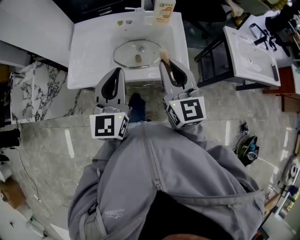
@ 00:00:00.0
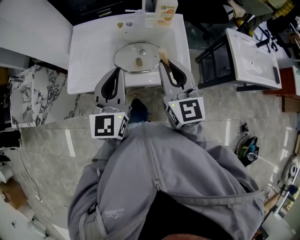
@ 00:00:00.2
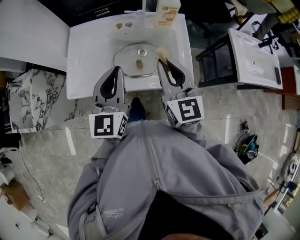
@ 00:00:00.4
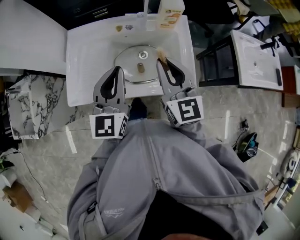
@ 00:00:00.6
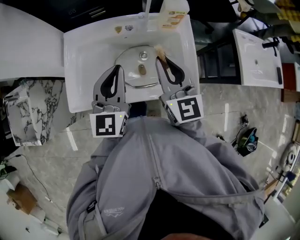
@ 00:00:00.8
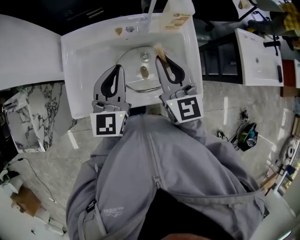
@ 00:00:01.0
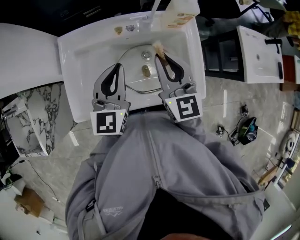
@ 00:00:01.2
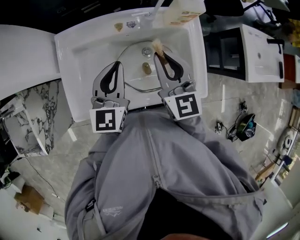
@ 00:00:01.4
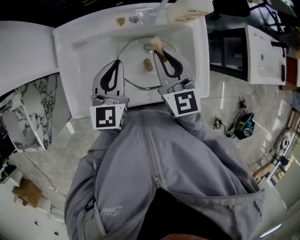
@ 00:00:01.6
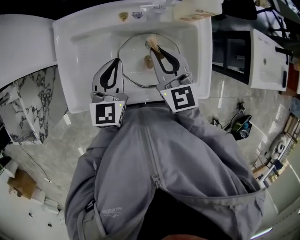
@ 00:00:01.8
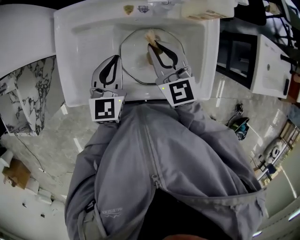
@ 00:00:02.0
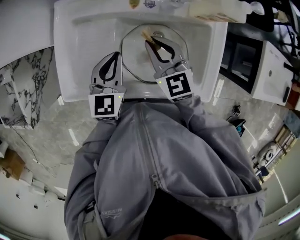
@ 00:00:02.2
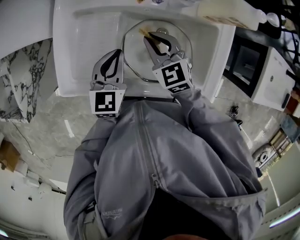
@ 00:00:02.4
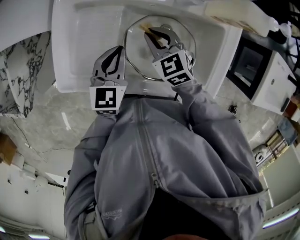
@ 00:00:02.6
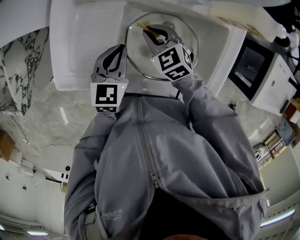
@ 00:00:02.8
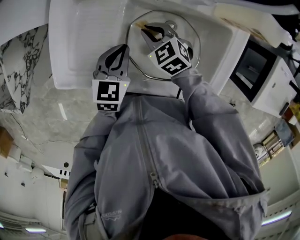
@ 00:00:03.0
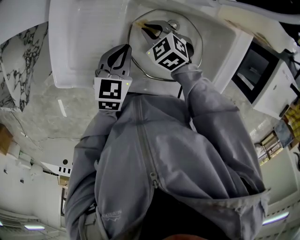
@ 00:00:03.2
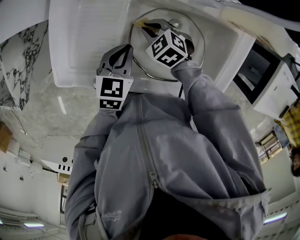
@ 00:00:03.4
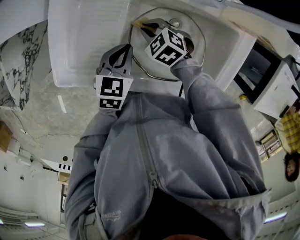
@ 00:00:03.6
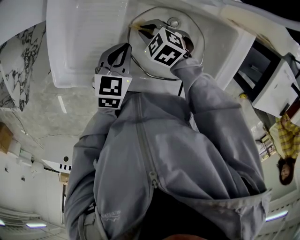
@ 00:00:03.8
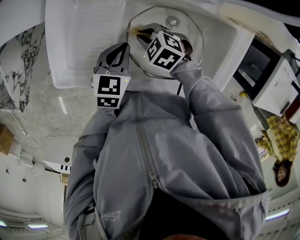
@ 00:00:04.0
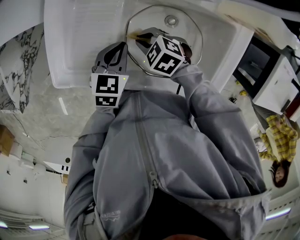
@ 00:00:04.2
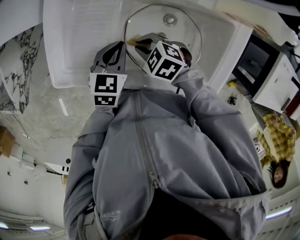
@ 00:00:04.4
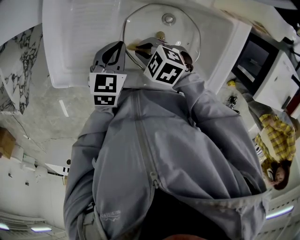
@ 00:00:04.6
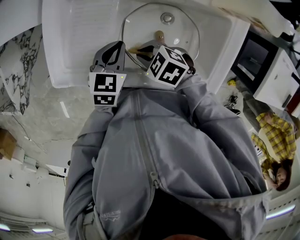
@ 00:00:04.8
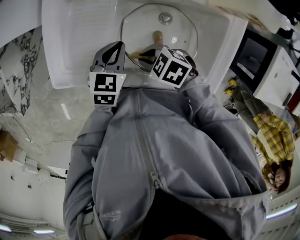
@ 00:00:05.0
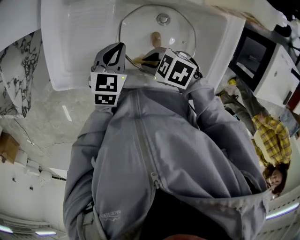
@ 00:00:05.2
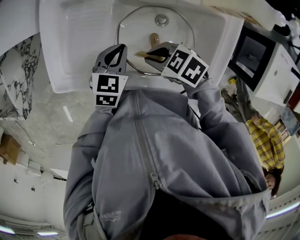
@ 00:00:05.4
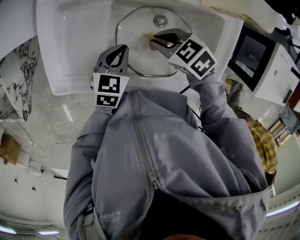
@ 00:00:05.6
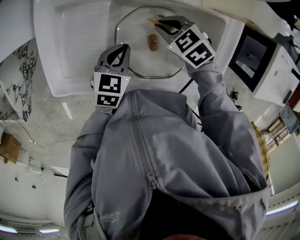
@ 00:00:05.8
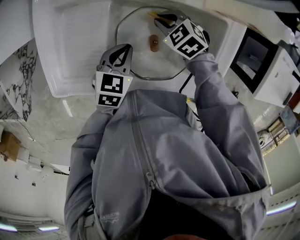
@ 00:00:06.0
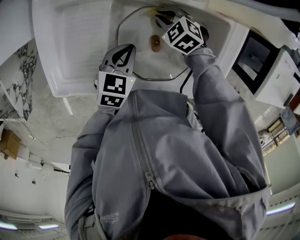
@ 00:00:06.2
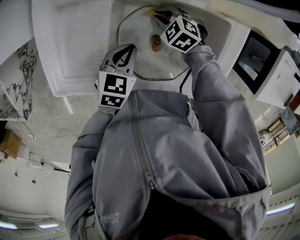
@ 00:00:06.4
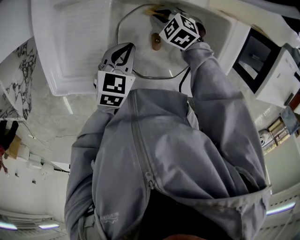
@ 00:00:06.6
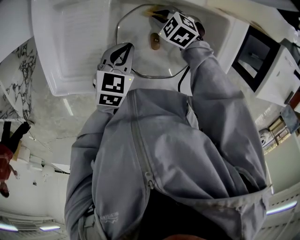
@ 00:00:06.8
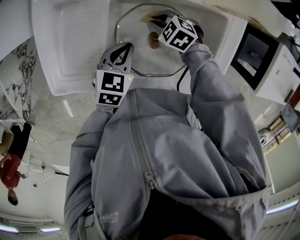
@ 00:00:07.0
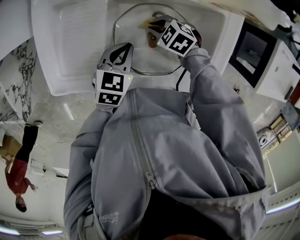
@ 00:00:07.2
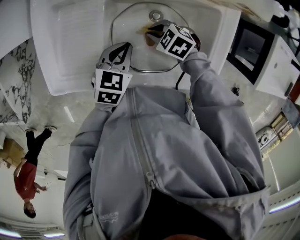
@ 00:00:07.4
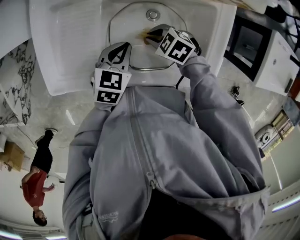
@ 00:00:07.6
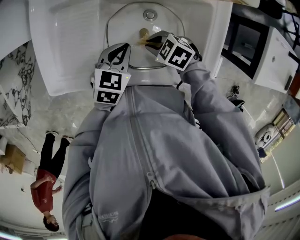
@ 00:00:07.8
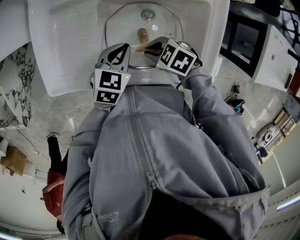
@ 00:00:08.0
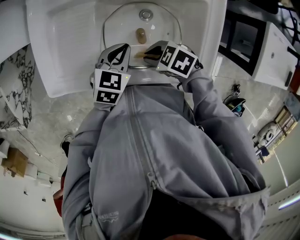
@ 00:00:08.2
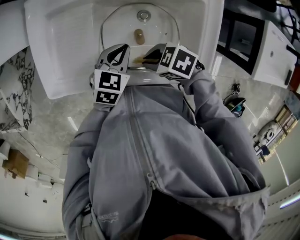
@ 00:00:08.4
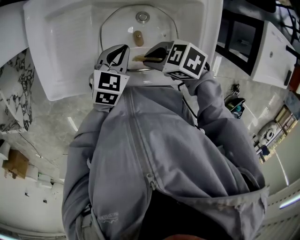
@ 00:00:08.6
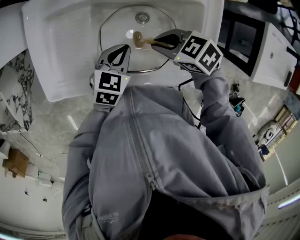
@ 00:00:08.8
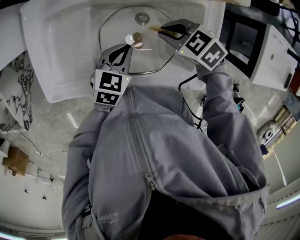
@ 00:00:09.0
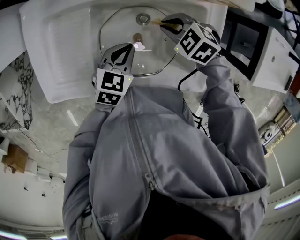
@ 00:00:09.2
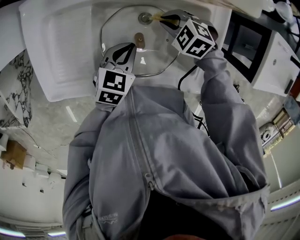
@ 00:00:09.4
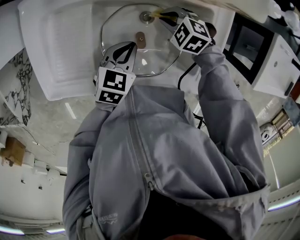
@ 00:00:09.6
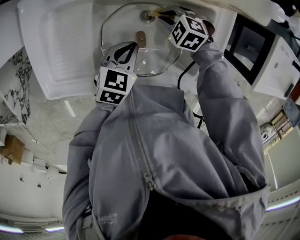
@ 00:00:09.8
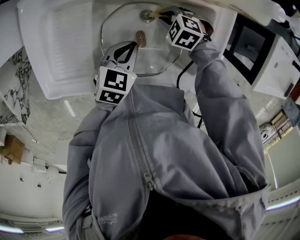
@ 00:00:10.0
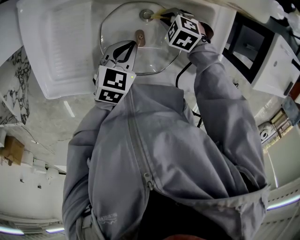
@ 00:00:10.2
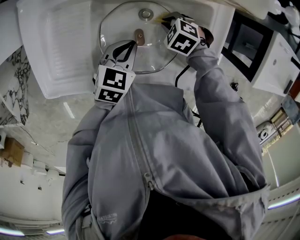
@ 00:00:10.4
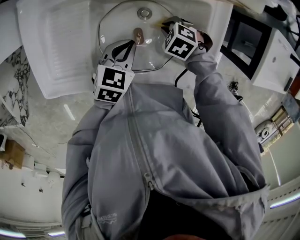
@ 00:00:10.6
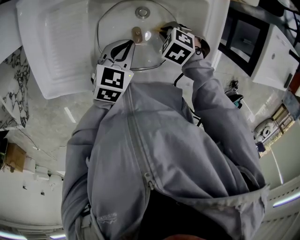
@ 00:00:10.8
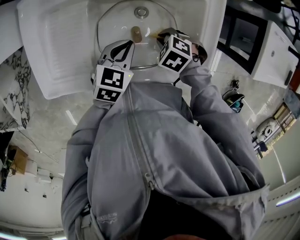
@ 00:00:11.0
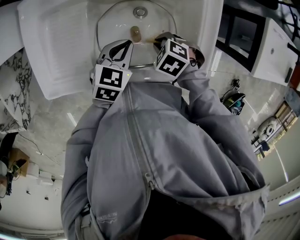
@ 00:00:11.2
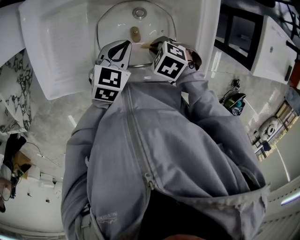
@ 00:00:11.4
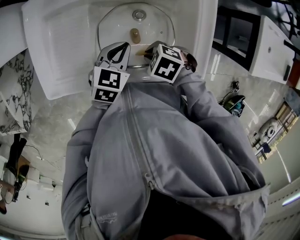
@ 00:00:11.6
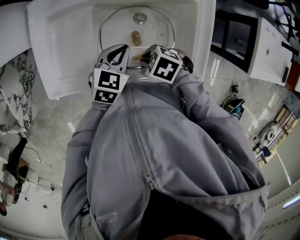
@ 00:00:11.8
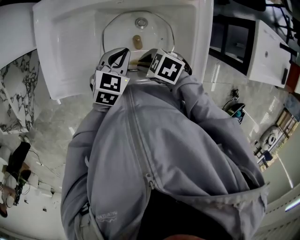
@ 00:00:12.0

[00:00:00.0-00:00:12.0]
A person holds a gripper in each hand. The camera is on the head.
00:00:00.0 to 00:00:01.6: Both grippers travel together forward and downward, some 25 cm.
00:00:01.6 to 00:00:03.0: The right gripper shifts about 25 cm downward and to the left, and tilts its fingers approximately 40 degrees downward. The left gripper heads downward, covering approximately 15 cm, and rotates about 30 degrees.
00:00:03.0 to 00:00:04.4: The right gripper travels backward and to the left by about 10 cm, and turns by roughly 20 degrees.
00:00:04.4 to 00:00:06.0: The right gripper travels upward and back again, approximately 5 cm each way. Meanwhile the left gripper ends up roughly 5 cm from where it was.
00:00:06.0 to 00:00:07.6: The right gripper changes place by roughly 10 cm.
00:00:07.6 to 00:00:09.0: The right gripper heads upward, covering roughly 10 cm.
00:00:09.0 to 00:00:10.4: The right gripper moves downward, roughly 15 cm, and changes its angle by about 30 degrees.
00:00:10.4 to 00:00:12.0: The right gripper changes place by approximately 20 cm, and turns by roughly 30 degrees; the left gripper ends up some 5 cm from where it was.

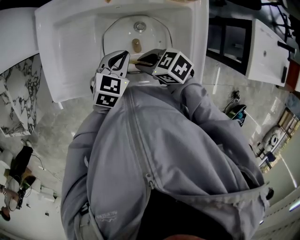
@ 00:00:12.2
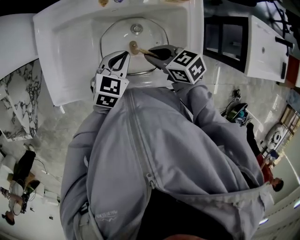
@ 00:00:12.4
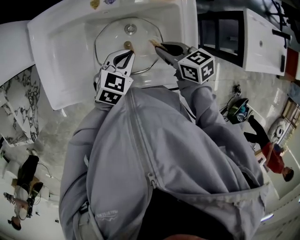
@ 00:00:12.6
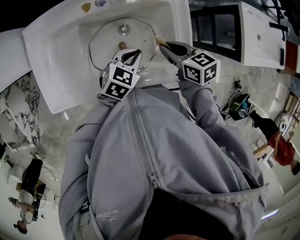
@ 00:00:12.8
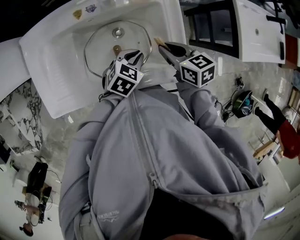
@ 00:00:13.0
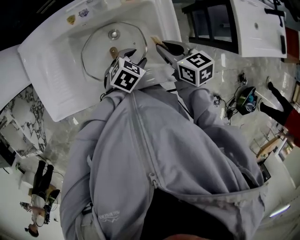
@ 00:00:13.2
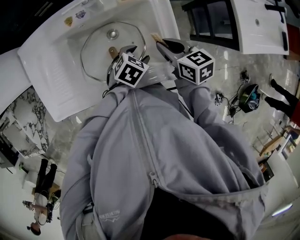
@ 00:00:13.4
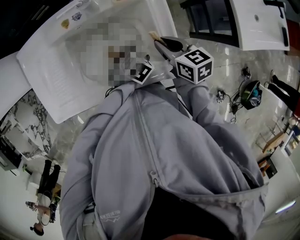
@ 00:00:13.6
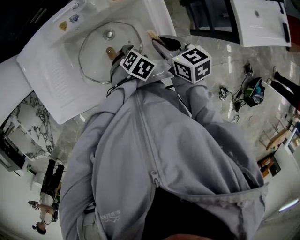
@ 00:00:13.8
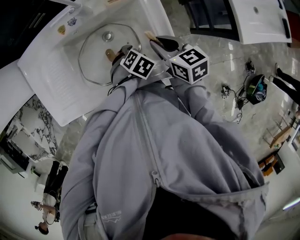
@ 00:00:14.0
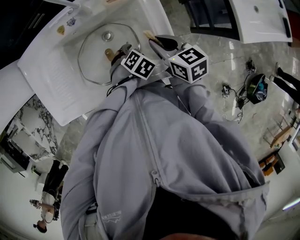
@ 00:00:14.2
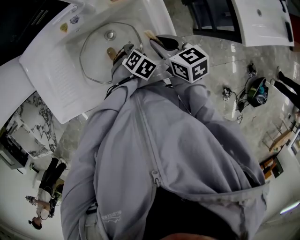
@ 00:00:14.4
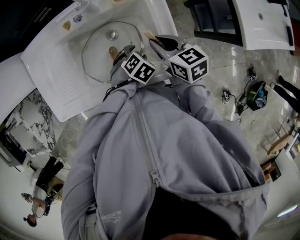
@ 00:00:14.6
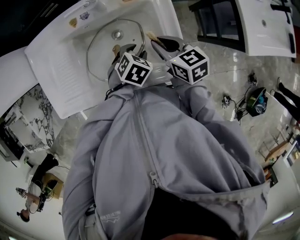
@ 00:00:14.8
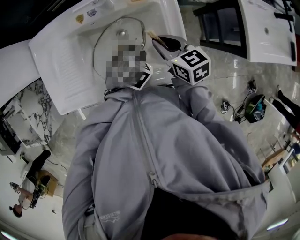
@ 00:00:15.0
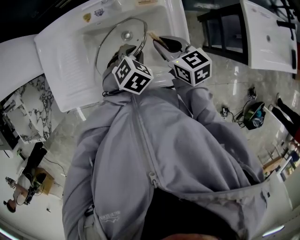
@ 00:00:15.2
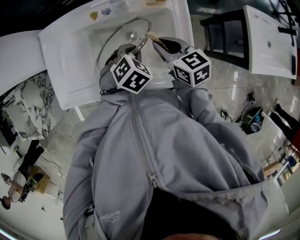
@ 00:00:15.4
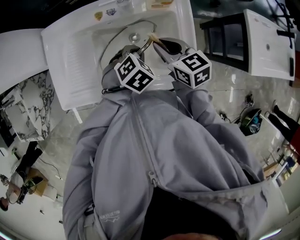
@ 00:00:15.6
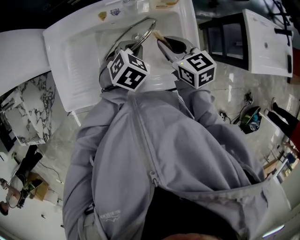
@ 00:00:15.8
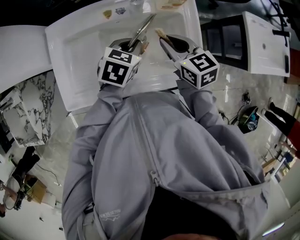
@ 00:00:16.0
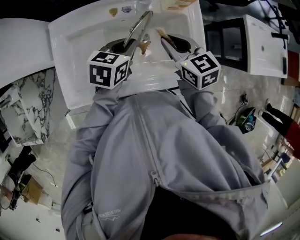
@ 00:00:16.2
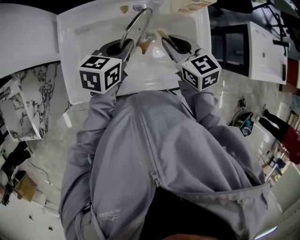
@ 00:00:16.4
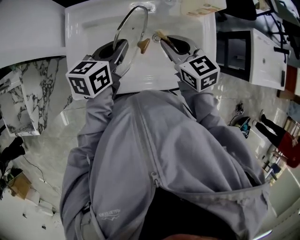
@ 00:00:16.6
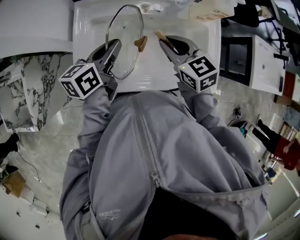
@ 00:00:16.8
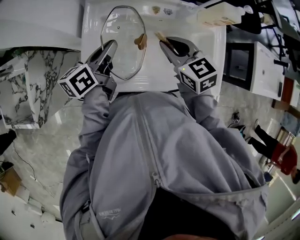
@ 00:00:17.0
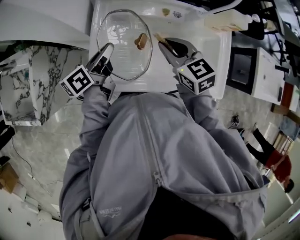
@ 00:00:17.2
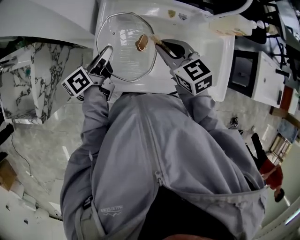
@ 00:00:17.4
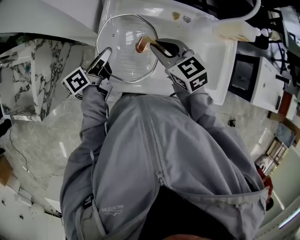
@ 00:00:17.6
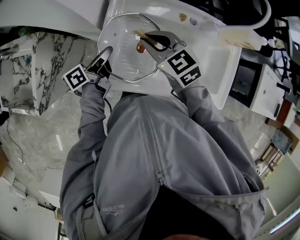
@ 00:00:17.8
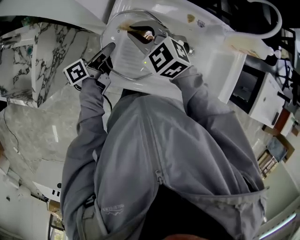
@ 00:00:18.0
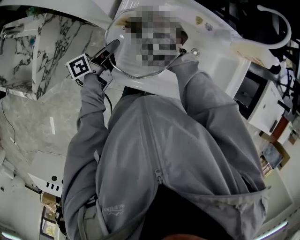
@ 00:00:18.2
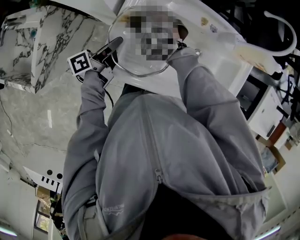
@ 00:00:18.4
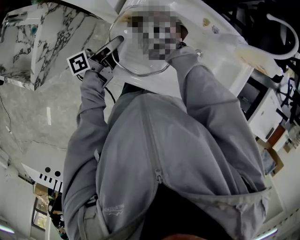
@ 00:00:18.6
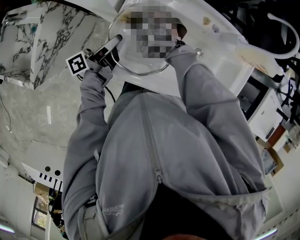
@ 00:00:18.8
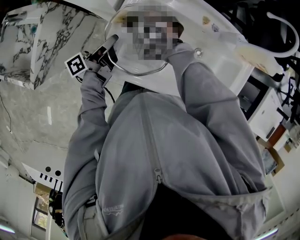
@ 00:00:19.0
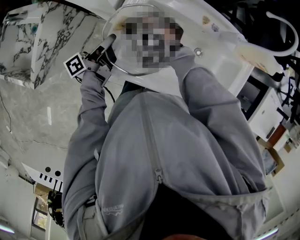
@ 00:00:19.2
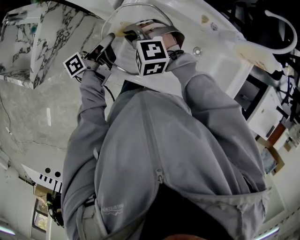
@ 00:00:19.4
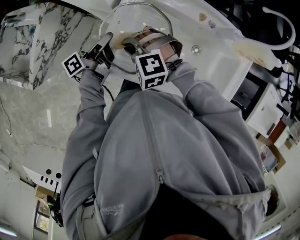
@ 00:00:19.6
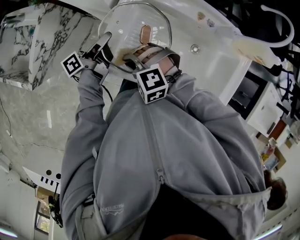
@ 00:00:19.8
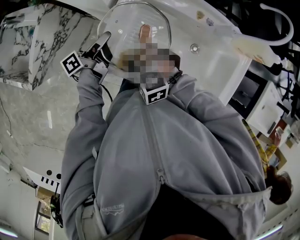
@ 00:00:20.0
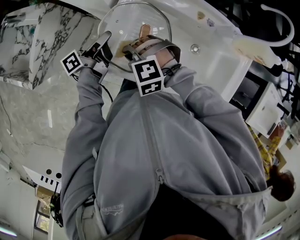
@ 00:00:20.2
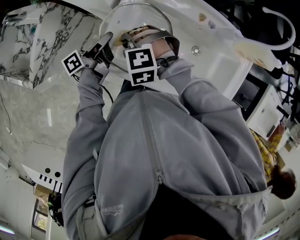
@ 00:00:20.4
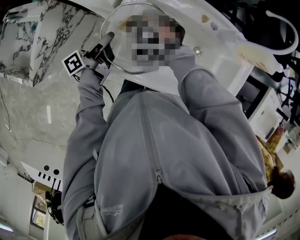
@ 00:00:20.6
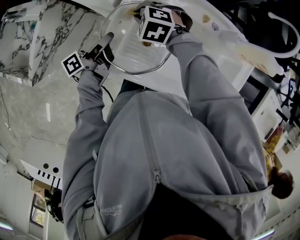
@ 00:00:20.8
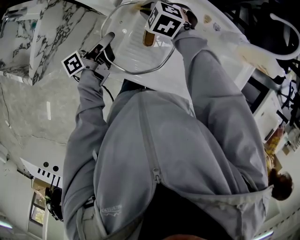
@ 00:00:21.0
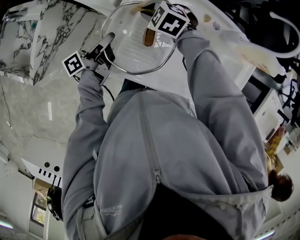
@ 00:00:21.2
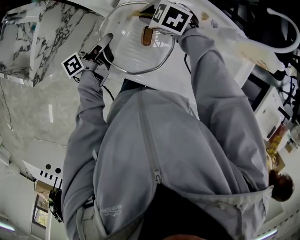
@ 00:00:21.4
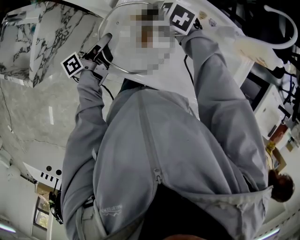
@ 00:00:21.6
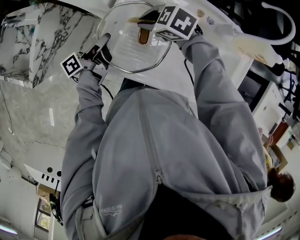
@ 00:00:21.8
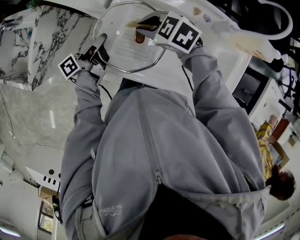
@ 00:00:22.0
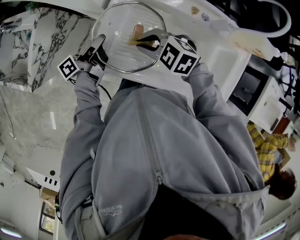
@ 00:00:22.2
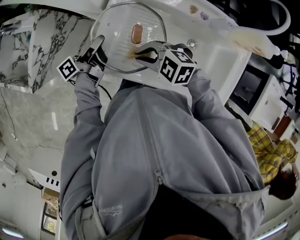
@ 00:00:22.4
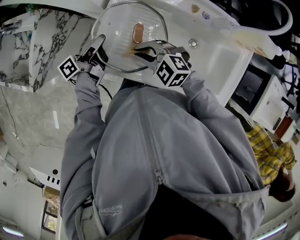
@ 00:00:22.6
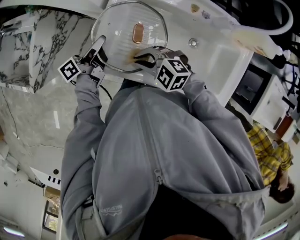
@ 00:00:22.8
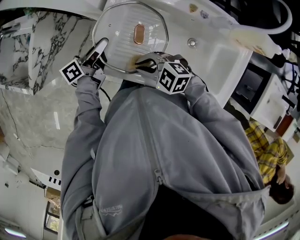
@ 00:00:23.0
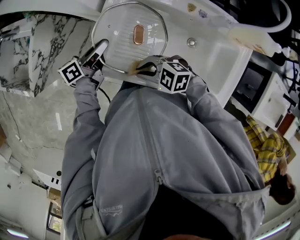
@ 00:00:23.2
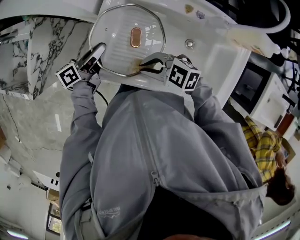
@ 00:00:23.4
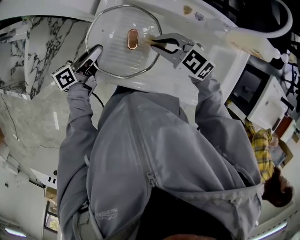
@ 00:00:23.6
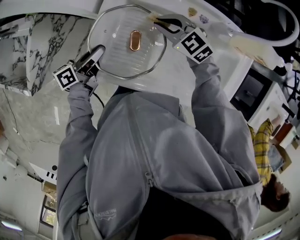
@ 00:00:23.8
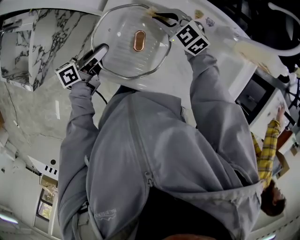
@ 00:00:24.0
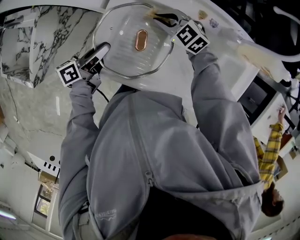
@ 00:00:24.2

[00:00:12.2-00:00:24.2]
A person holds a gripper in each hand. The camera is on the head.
00:00:12.2 to 00:00:13.8: The right gripper moves some 20 cm, and rotates some 50 degrees. Meanwhile the left gripper shifts by about 20 cm, turns by some 40 degrees, and opens its fingers.
00:00:13.8 to 00:00:15.2: The left gripper goes approximately 10 cm upward, and closes, while the right gripper shifts by some 5 cm.
00:00:15.2 to 00:00:16.6: The grippers both shift to the left and upward by about 20 cm. The left gripper angles its fingers upward, by approximately 40 degrees.
00:00:16.6 to 00:00:18.2: The left gripper goes about 25 cm to the left and downward, and twists some 50 degrees counterclockwise, seen from behind. Meanwhile the right gripper moves to the left, roughly 35 cm, and rotates around the line of its fingers by roughly 60 degrees, counterclockwise from behind.
00:00:18.2 to 00:00:19.8: The right gripper heads backward, covering approximately 15 cm, and rotates roughly 30 degrees.
00:00:19.8 to 00:00:21.2: The right gripper goes approximately 20 cm forward and to the right, and swivels approximately 30 degrees.
00:00:21.2 to 00:00:22.6: The right gripper changes place by about 20 cm.
00:00:22.6 to 00:00:24.2: The left gripper turns by some 30 degrees, while the right gripper moves roughly 20 cm.
